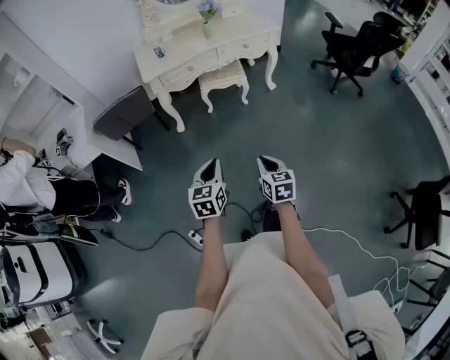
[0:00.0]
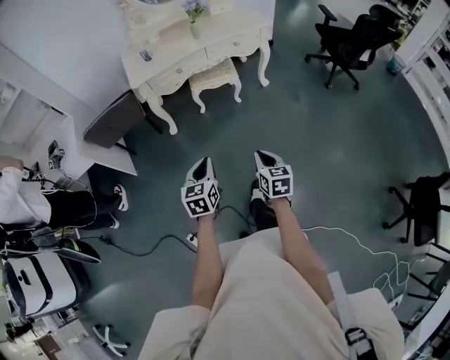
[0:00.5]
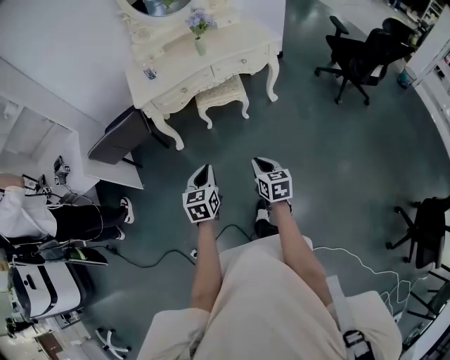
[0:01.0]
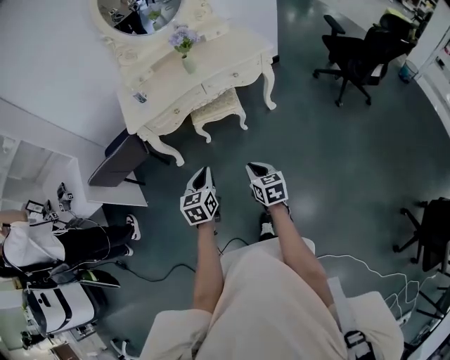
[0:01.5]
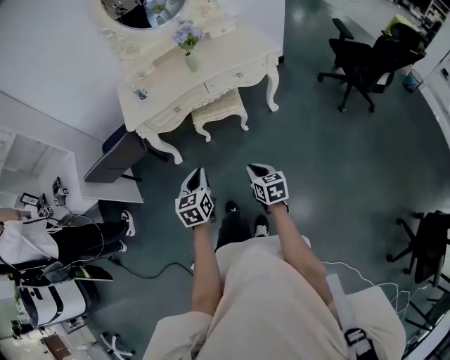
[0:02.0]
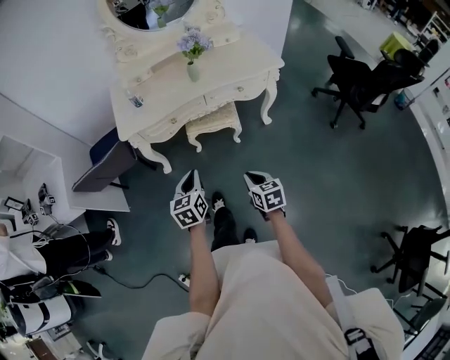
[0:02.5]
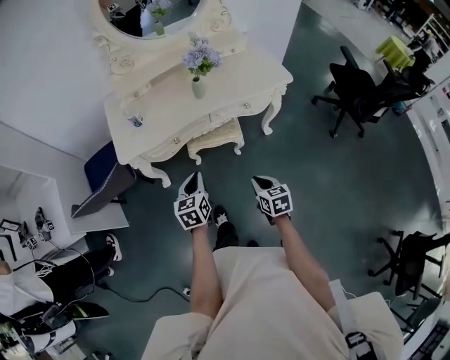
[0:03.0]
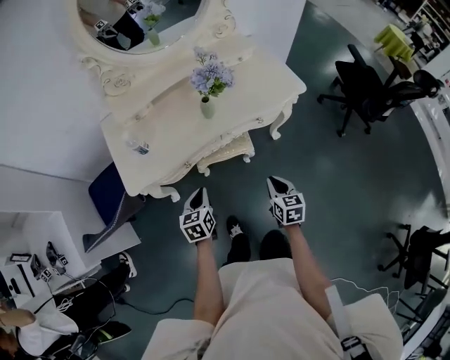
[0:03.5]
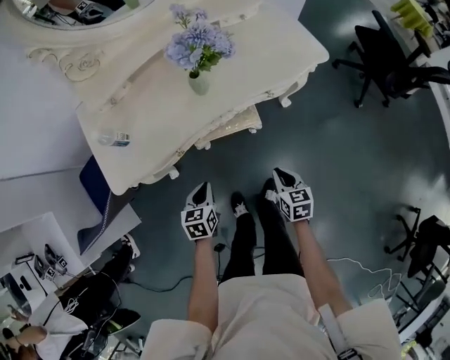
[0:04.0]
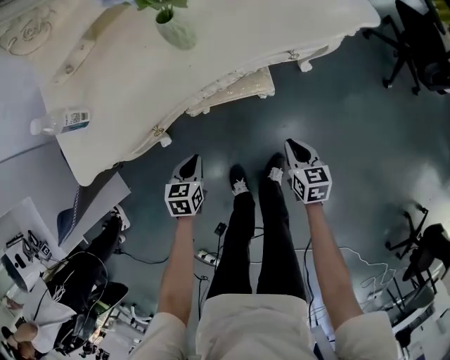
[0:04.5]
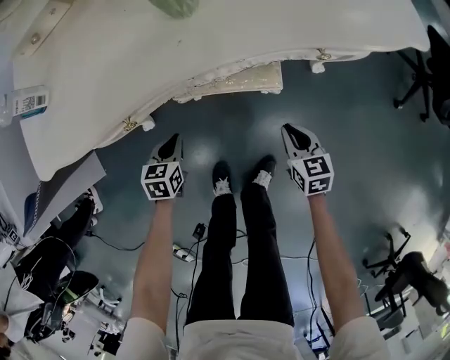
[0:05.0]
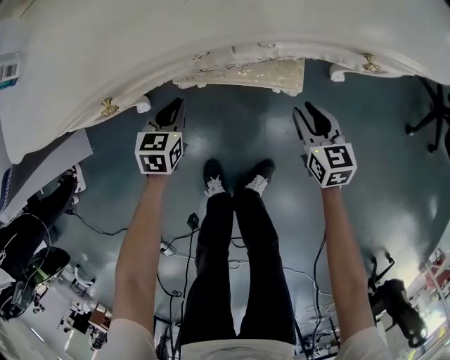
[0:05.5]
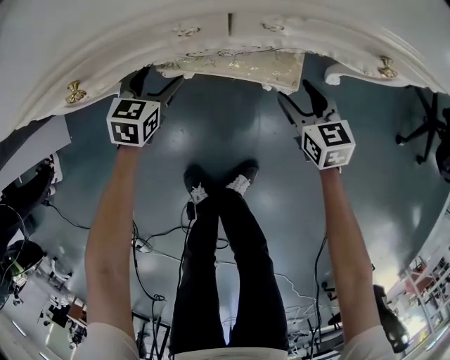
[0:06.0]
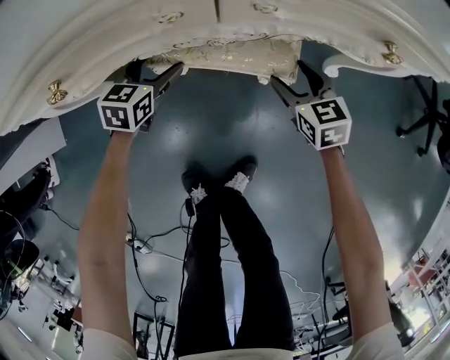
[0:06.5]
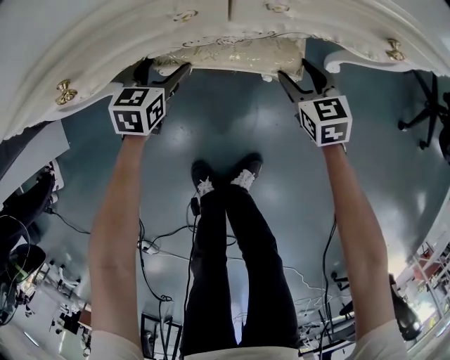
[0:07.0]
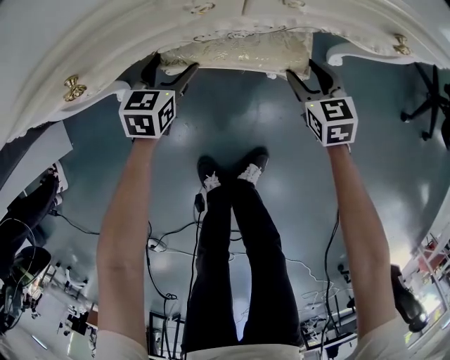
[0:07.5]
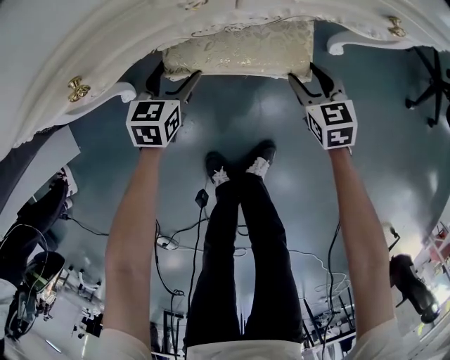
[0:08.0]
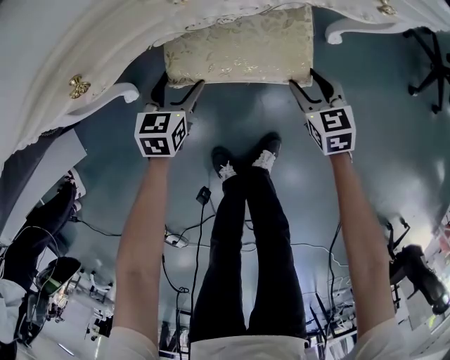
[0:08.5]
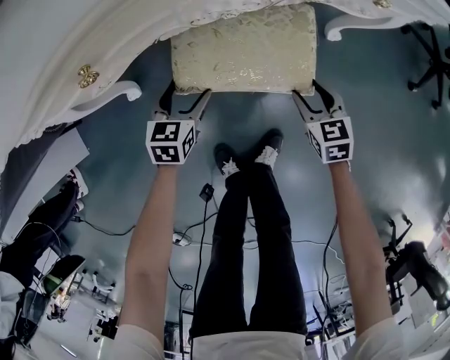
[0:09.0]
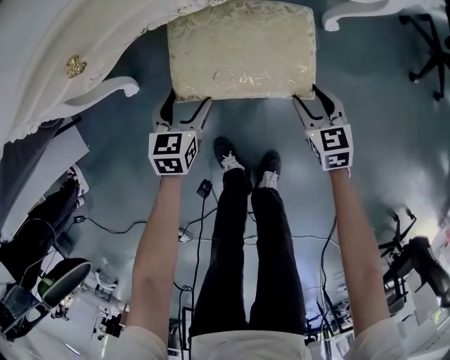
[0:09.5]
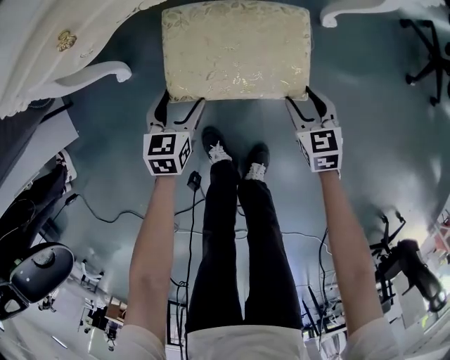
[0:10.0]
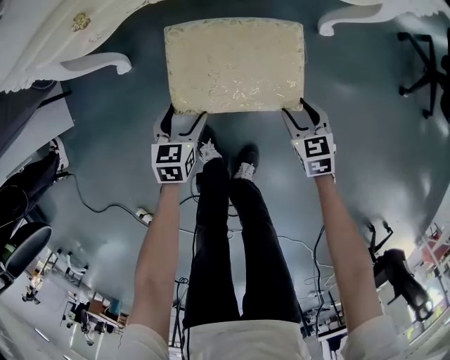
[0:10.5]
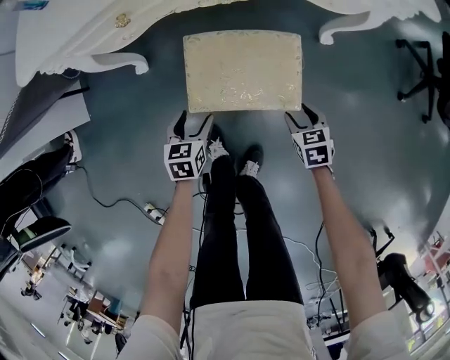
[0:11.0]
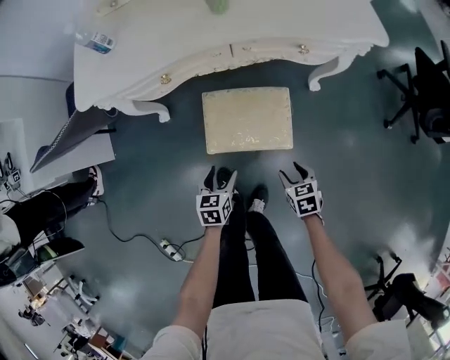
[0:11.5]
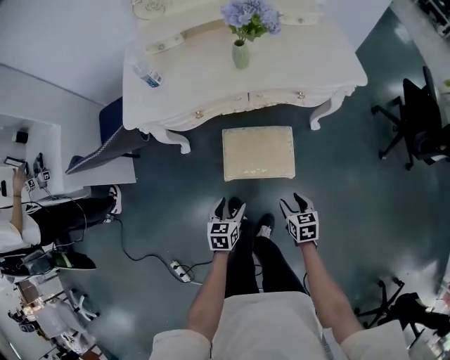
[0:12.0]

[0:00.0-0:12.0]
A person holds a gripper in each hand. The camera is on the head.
0:00.0 to 0:02.0: The grippers both shift forward by roughly 30 cm.
0:02.0 to 0:04.0: Both grippers travel together forward and downward, roughly 35 cm. The left gripper turns by some 20 degrees.
0:04.0 to 0:06.0: Both grippers move downward and forward, about 40 cm. The right gripper turns by roughly 30 degrees, and opens its fingers, while the left gripper opens.
0:06.0 to 0:08.0: The grippers move only a little.
0:08.0 to 0:10.0: Both grippers travel together backward, roughly 15 cm.
0:10.0 to 0:12.0: Both grippers move upward and backward, roughly 30 cm.

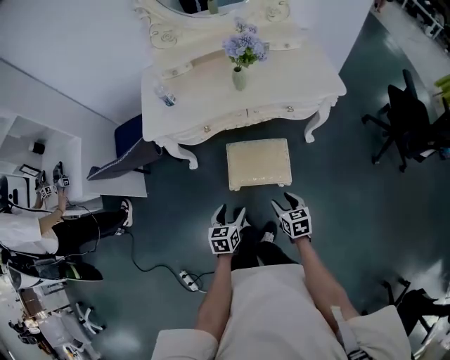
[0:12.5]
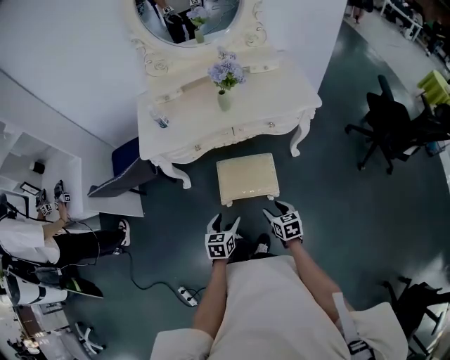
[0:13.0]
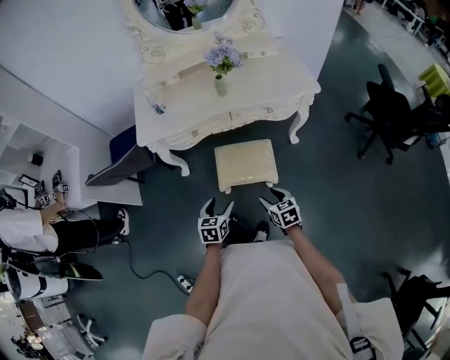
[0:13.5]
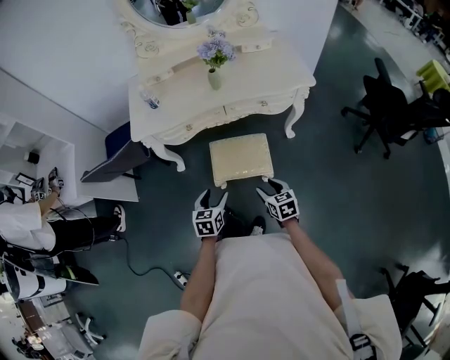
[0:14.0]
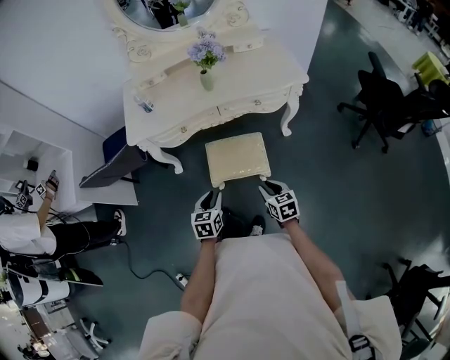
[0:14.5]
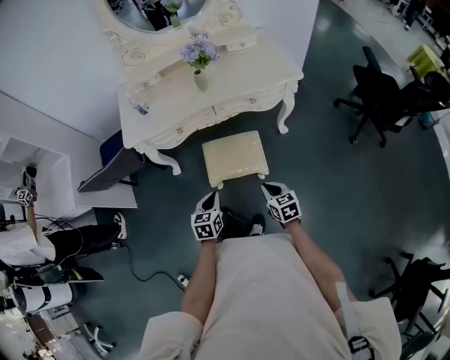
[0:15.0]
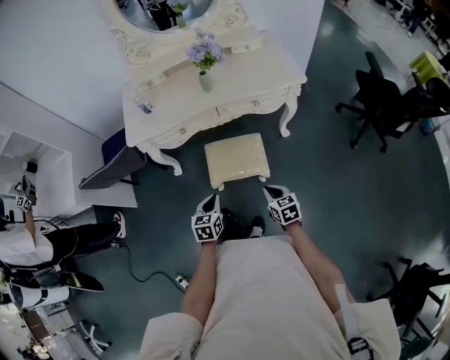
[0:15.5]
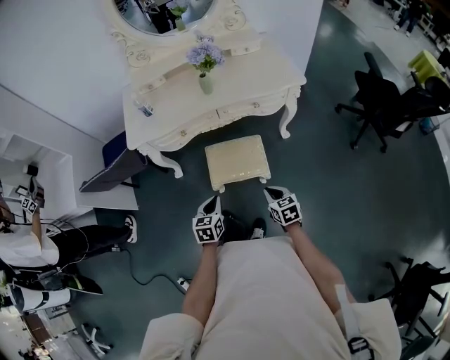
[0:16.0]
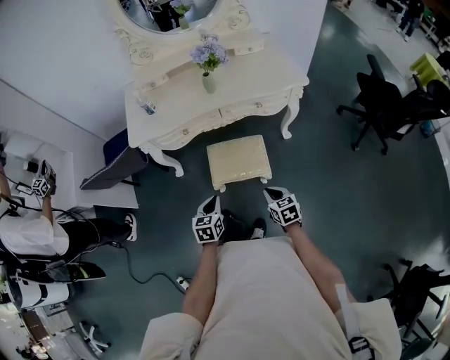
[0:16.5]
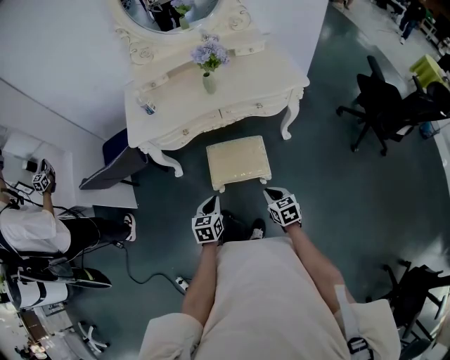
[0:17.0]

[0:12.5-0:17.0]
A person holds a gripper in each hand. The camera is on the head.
0:12.5 to 0:14.5: The right gripper ends up some 5 cm from where it was, and closes. Meanwhile the left gripper travels upward by roughly 5 cm, and closes.
0:14.5 to 0:17.0: The grippers make only small movements.

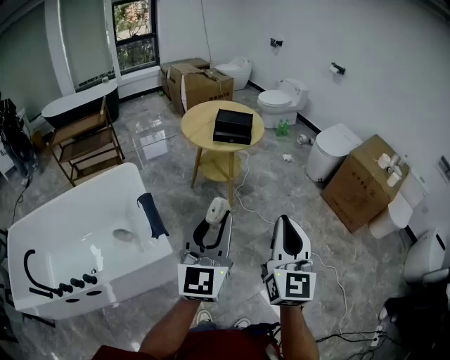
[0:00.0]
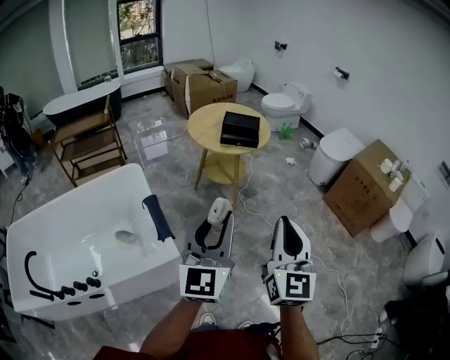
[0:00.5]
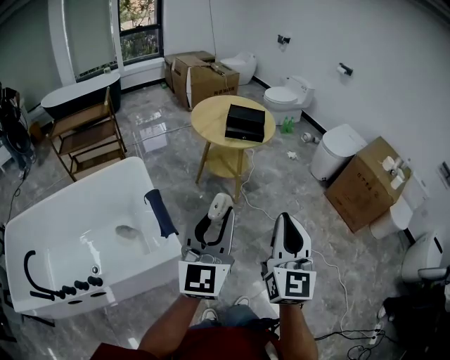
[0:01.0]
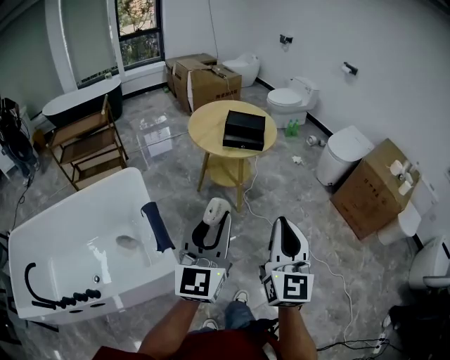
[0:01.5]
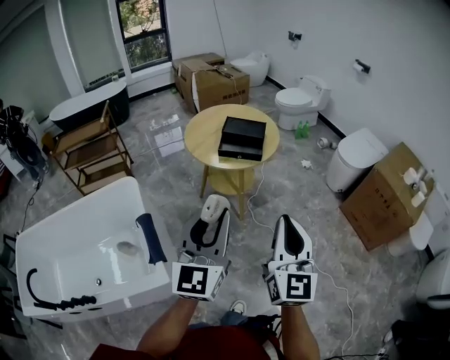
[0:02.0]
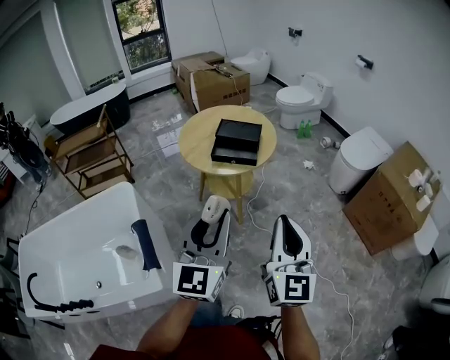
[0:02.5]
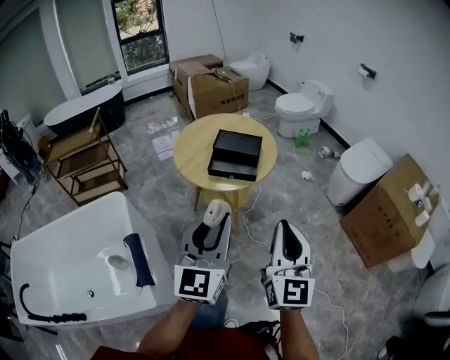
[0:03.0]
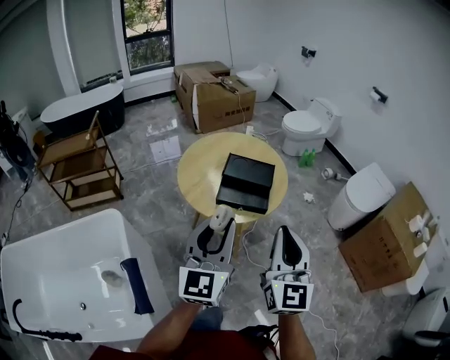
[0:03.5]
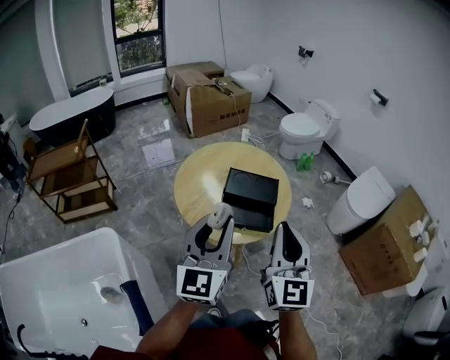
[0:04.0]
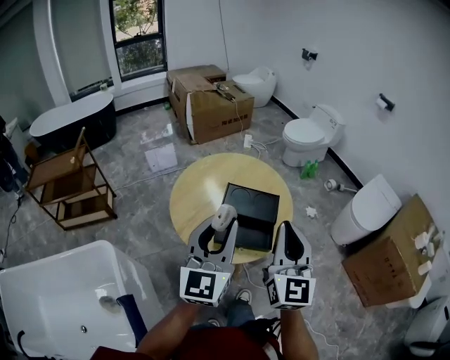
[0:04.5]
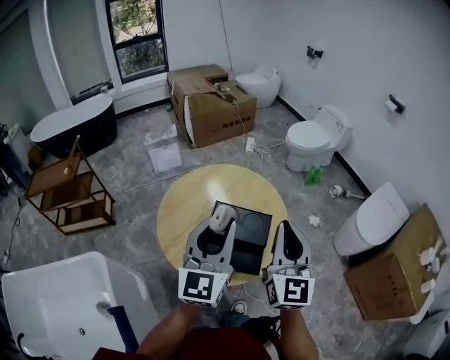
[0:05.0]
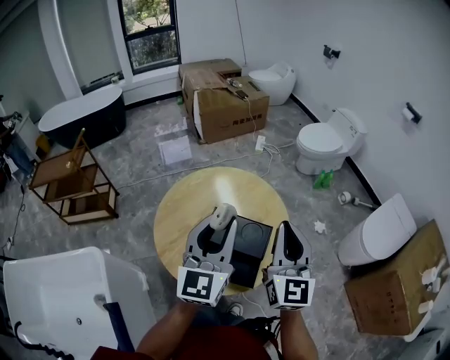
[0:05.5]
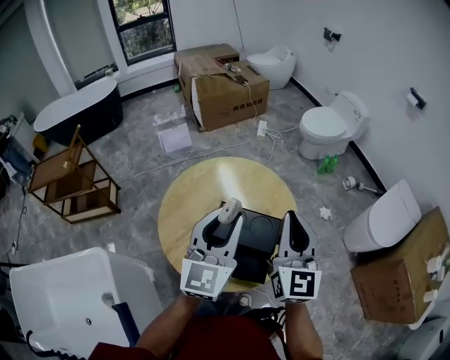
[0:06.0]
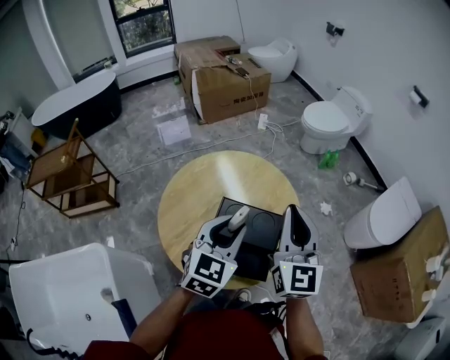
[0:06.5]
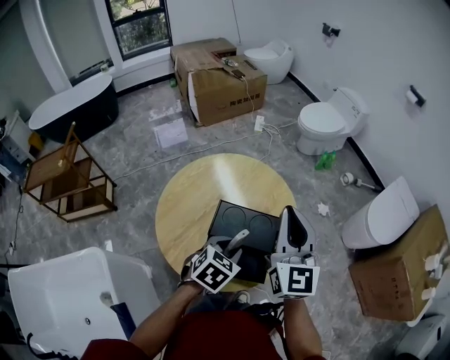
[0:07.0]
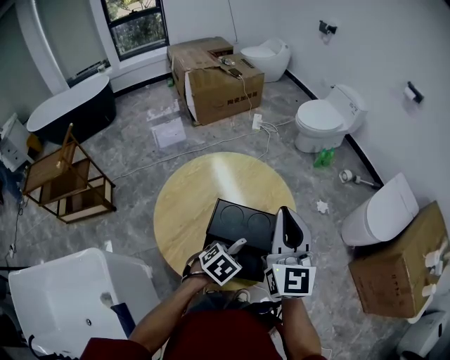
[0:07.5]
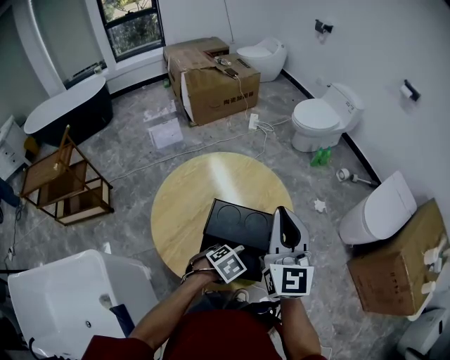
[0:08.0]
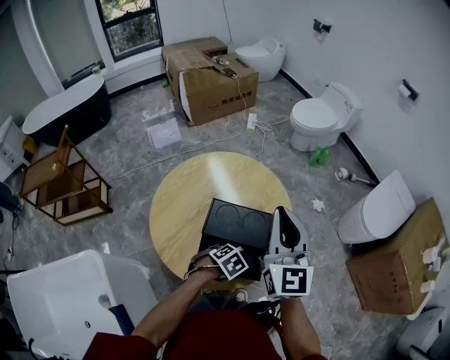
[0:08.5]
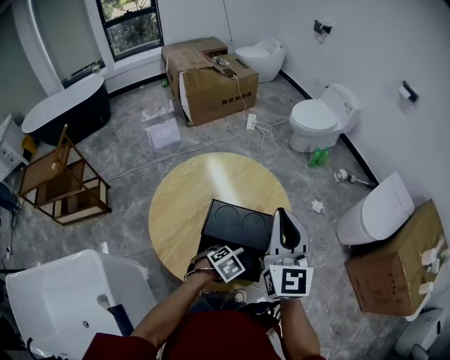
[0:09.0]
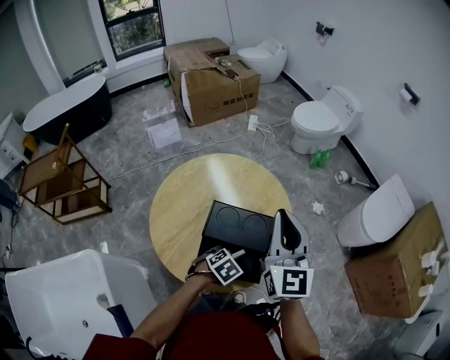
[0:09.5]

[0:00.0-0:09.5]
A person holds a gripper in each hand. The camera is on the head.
0:00.0 to 0:02.0: Both grippers travel together forward, about 25 cm.
0:02.0 to 0:04.0: The two grippers travel together, forward, about 40 cm.
0:04.0 to 0:05.5: The two grippers go roughly 30 cm forward.
0:05.5 to 0:07.5: The left gripper travels downward by approximately 30 cm, and points its fingers approximately 70 degrees further downward; the right gripper changes place by approximately 5 cm.
0:07.5 to 0:09.5: The left gripper travels downward by some 5 cm.

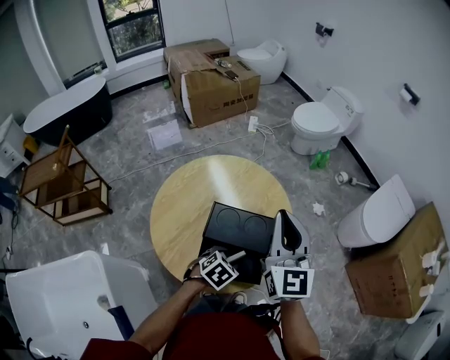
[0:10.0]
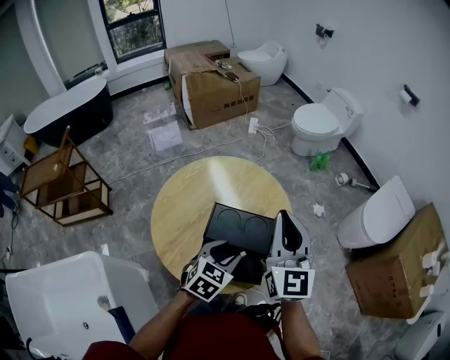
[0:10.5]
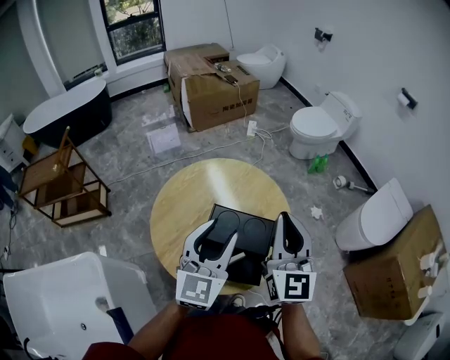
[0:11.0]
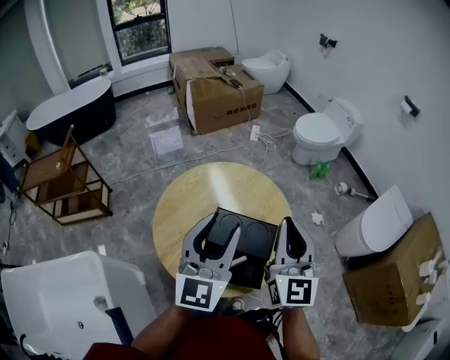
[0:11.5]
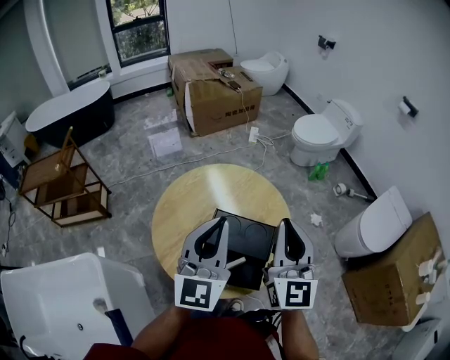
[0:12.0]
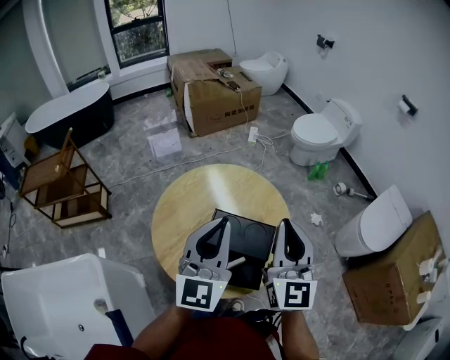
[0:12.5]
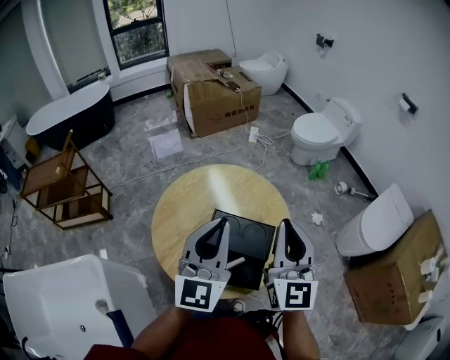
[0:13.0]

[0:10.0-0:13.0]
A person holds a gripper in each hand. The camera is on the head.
0:10.0 to 0:11.5: The left gripper shifts approximately 35 cm upward, and tips its fingers upward by about 70 degrees.
0:11.5 to 0:13.0: The left gripper closes up.
